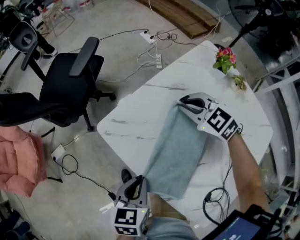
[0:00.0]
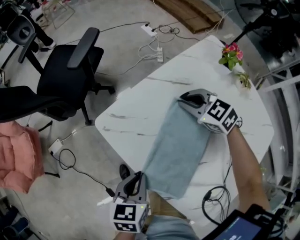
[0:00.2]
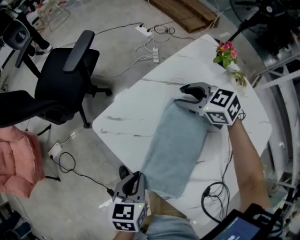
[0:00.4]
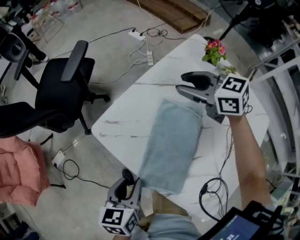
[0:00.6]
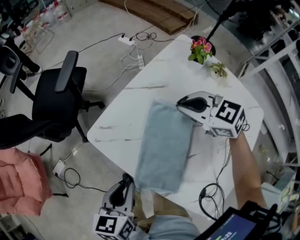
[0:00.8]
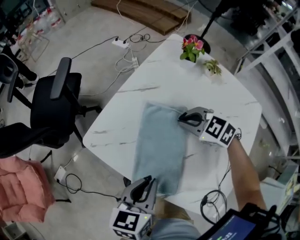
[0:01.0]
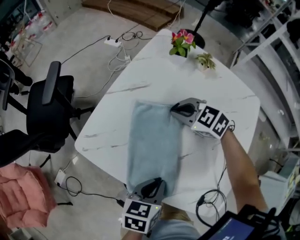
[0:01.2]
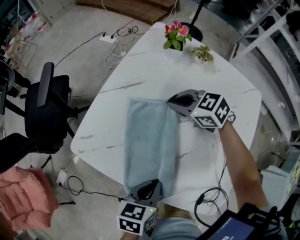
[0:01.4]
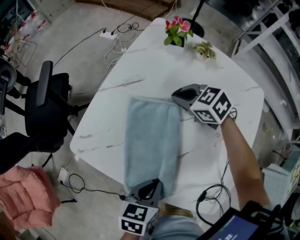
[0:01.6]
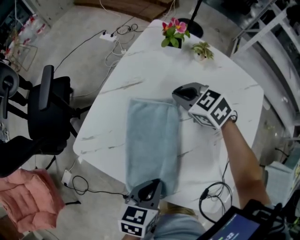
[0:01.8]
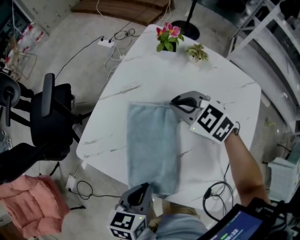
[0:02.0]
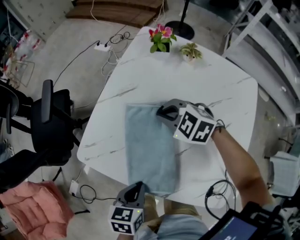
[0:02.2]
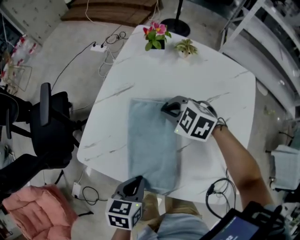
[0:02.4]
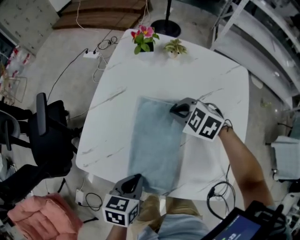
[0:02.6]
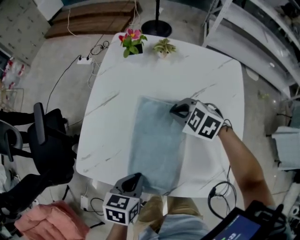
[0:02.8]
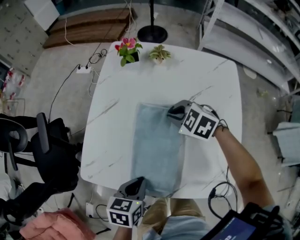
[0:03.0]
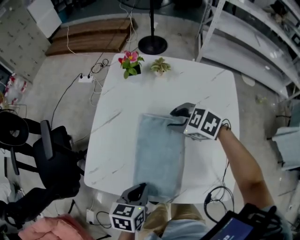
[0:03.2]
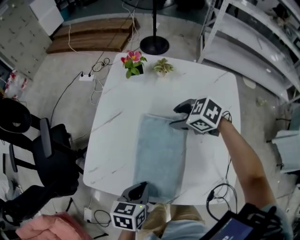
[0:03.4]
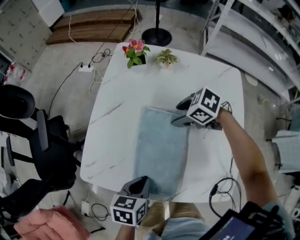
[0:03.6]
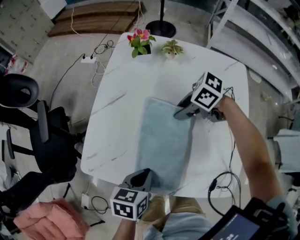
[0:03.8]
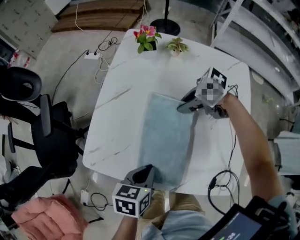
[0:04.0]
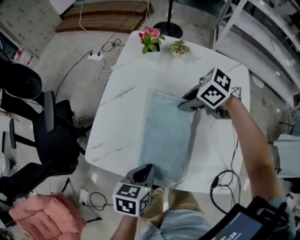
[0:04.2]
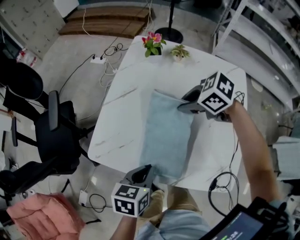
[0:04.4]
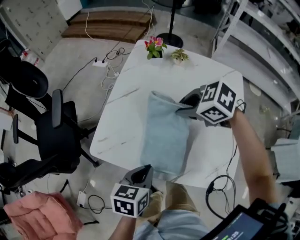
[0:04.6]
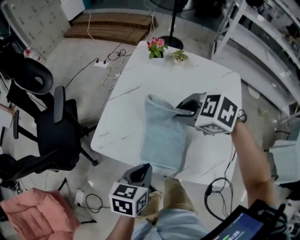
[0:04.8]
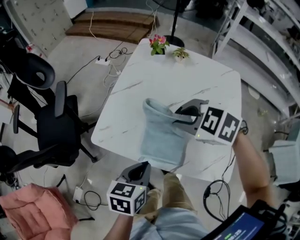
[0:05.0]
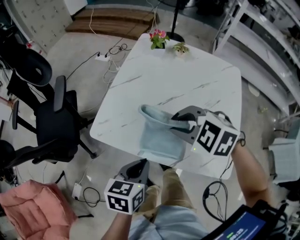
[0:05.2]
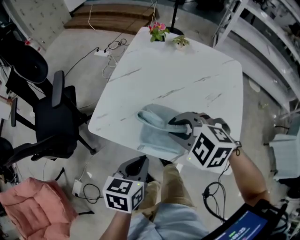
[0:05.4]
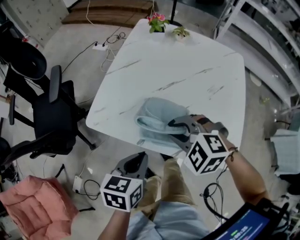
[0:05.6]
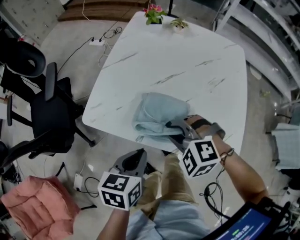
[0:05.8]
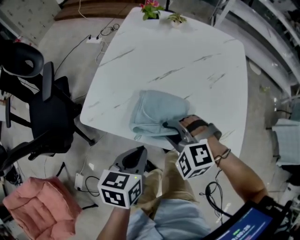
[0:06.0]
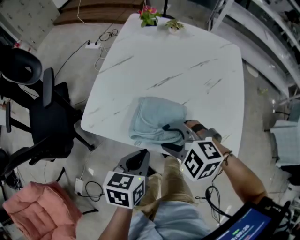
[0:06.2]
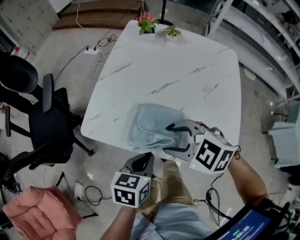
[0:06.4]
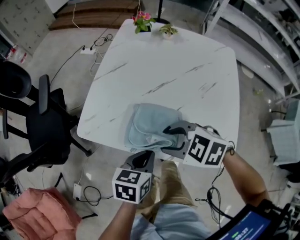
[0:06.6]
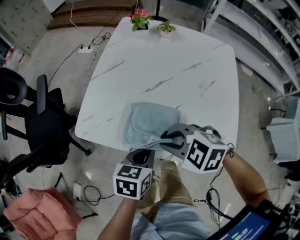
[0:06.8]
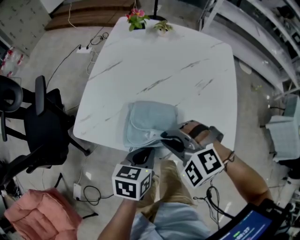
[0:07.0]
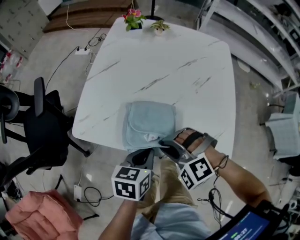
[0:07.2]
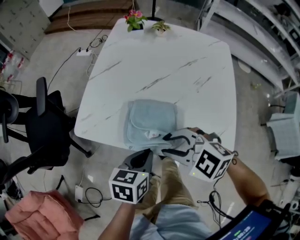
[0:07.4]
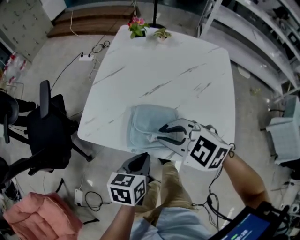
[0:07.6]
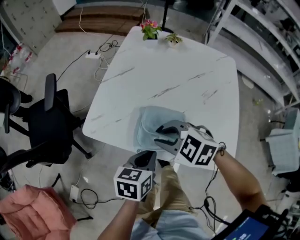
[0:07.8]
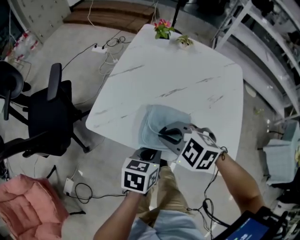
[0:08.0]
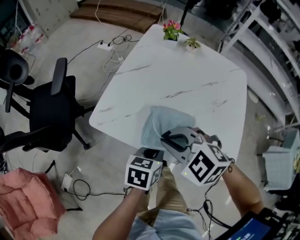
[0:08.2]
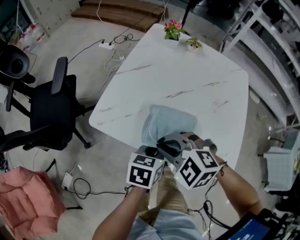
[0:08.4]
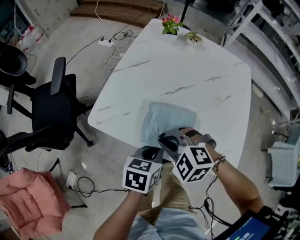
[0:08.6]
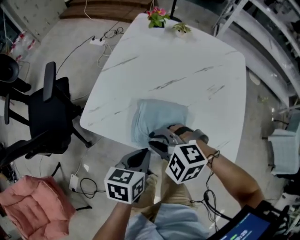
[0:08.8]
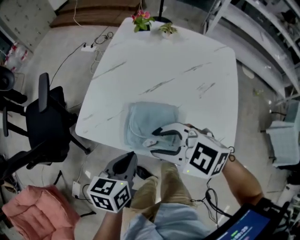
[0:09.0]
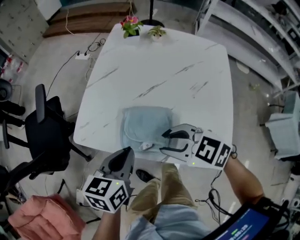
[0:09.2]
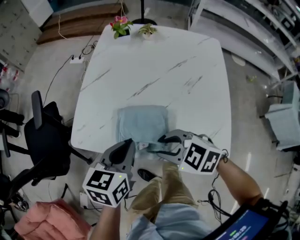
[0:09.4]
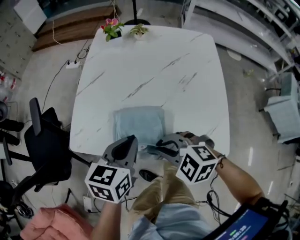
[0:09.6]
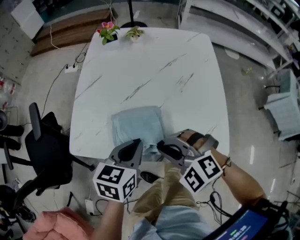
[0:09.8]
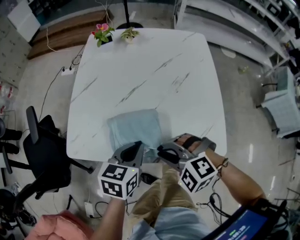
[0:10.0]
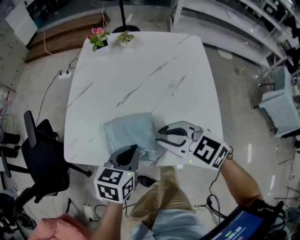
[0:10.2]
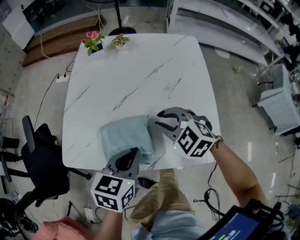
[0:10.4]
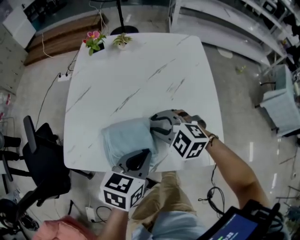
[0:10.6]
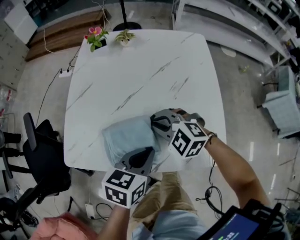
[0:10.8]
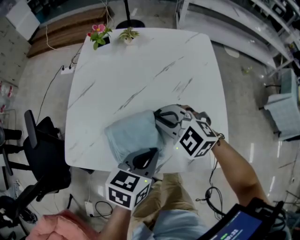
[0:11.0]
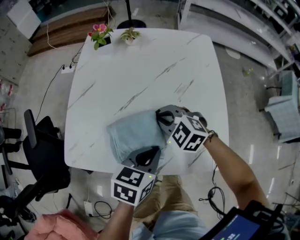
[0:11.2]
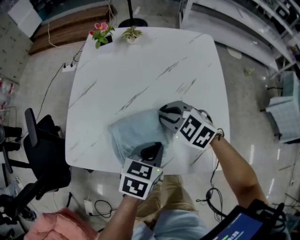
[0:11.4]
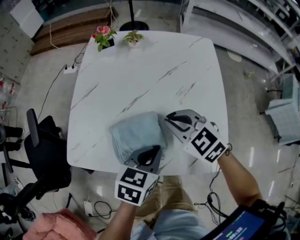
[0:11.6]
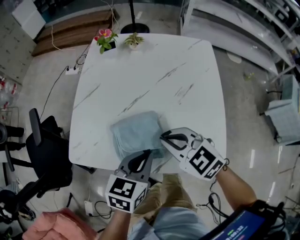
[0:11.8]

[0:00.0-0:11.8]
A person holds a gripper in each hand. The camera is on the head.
0:00.0 to 0:01.4: The right gripper moves up and down over approximately 10 cm, changing direction 2 times, rotates some 30 degrees, and opens and closes again. The left gripper changes place by some 10 cm, turns by approximately 30 degrees, and opens and closes again.
0:01.4 to 0:03.0: The left gripper moves to the left, roughly 5 cm. Meanwhile the right gripper goes some 10 cm to the right and backward, and changes its angle by about 20 degrees.
0:03.0 to 0:04.4: The right gripper heads upward, covering about 5 cm, turns by some 20 degrees, and opens, then closes again.
0:04.4 to 0:06.0: The left gripper changes place by about 5 cm, while the right gripper ends up roughly 25 cm from where it was, and twists some 40 degrees counterclockwise, seen from behind.
0:06.0 to 0:07.4: The left gripper changes place by roughly 5 cm; the right gripper goes up and down, some 5 cm each way, reversing 2 times, turns by approximately 30 degrees, and opens, then closes once more.
0:07.4 to 0:08.8: The right gripper travels to the left by roughly 5 cm, and closes up.
0:08.8 to 0:10.4: The left gripper changes place by approximately 10 cm, and rotates about 30 degrees. Meanwhile the right gripper moves up and down over roughly 10 cm, changing direction 2 times, rotates approximately 30 degrees, and opens, then closes again.
0:10.4 to 0:11.8: The right gripper moves some 5 cm.

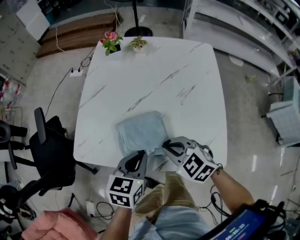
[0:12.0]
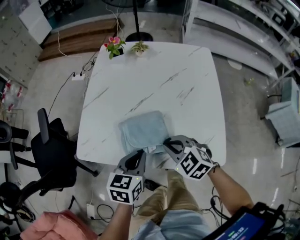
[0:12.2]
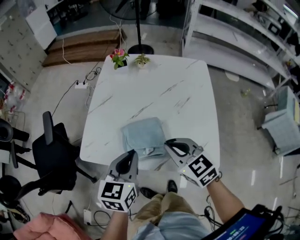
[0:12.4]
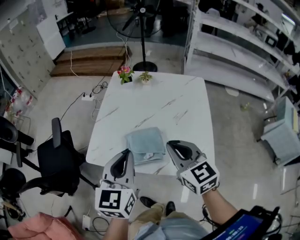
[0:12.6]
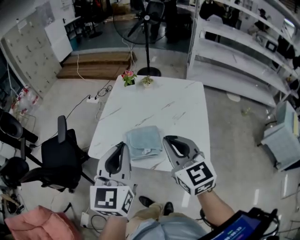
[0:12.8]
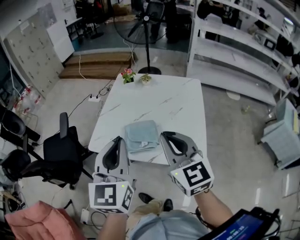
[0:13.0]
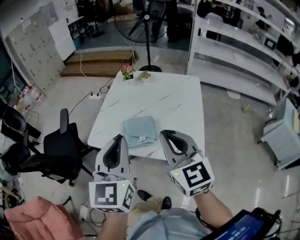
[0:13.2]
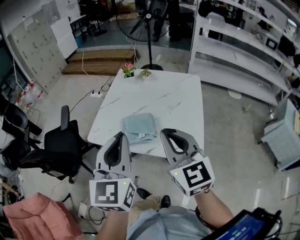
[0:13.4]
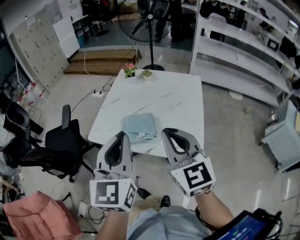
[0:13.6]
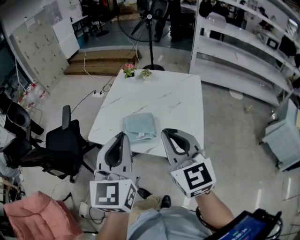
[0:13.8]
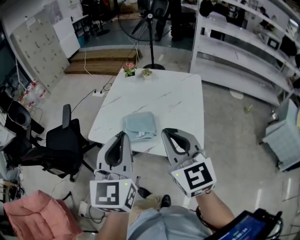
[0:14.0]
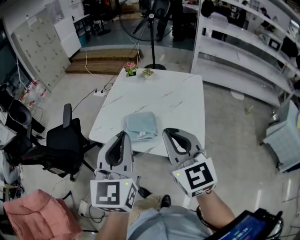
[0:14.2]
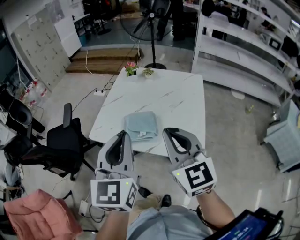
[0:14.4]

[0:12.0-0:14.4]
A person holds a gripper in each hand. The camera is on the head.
0:12.0 to 0:13.2: The two grippers go about 30 cm upward. The left gripper points its fingers roughly 30 degrees further upward; the right gripper points its fingers roughly 40 degrees further upward.
0:13.2 to 0:14.4: There are only small adjustments of the grippers.

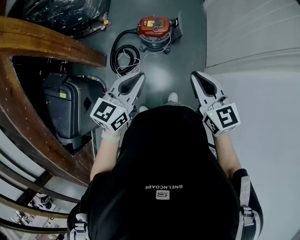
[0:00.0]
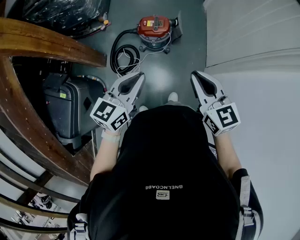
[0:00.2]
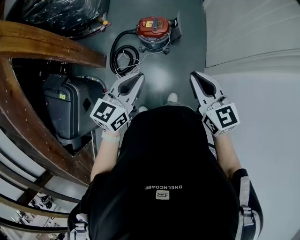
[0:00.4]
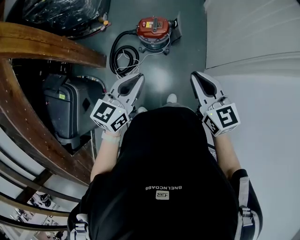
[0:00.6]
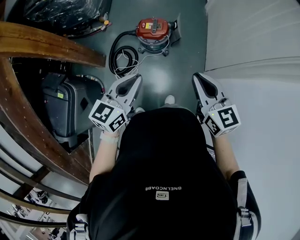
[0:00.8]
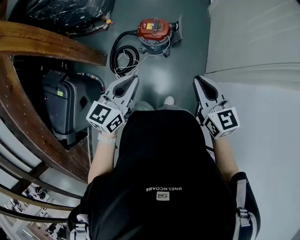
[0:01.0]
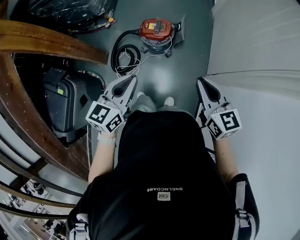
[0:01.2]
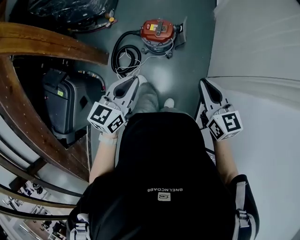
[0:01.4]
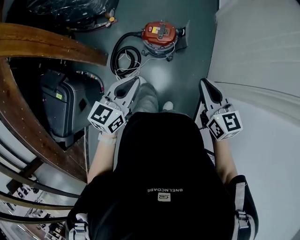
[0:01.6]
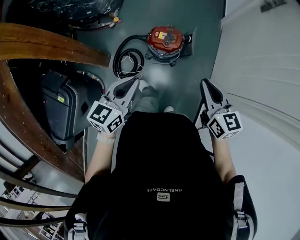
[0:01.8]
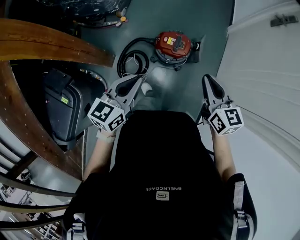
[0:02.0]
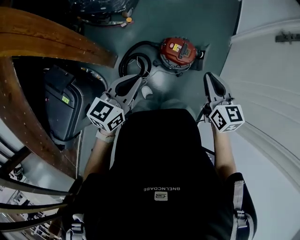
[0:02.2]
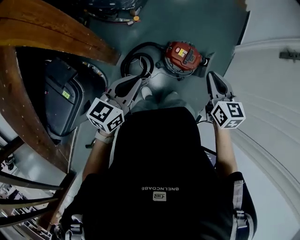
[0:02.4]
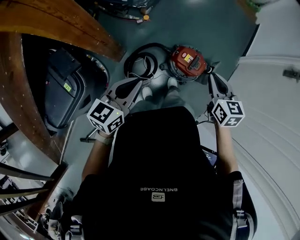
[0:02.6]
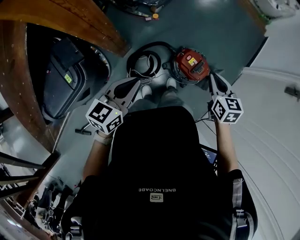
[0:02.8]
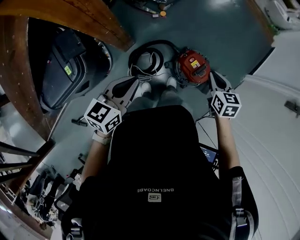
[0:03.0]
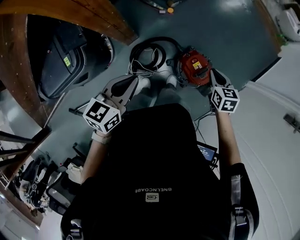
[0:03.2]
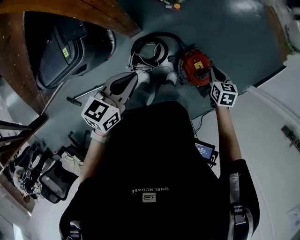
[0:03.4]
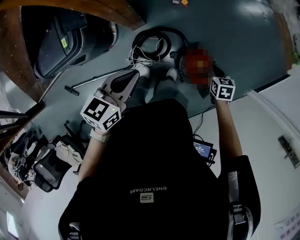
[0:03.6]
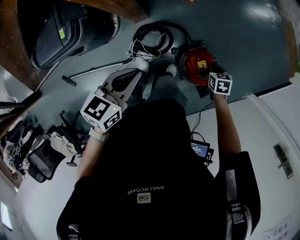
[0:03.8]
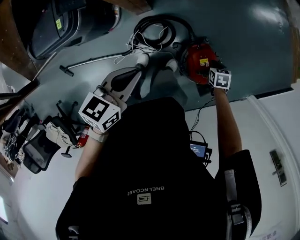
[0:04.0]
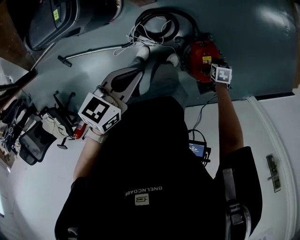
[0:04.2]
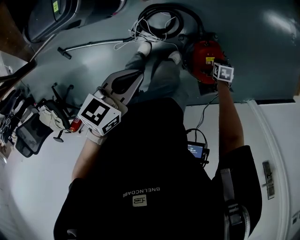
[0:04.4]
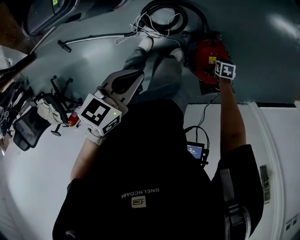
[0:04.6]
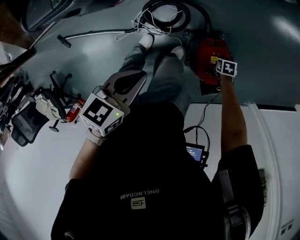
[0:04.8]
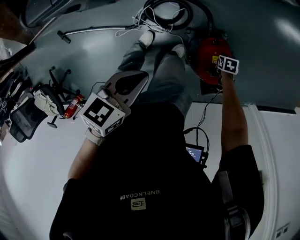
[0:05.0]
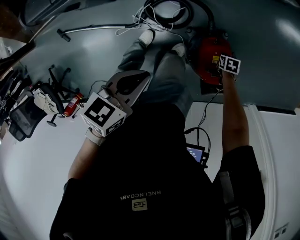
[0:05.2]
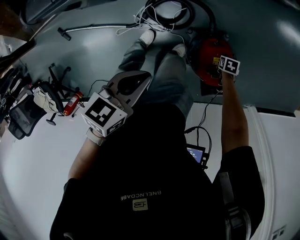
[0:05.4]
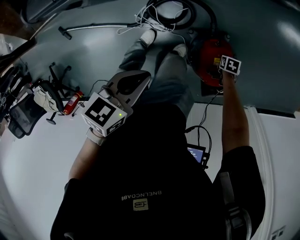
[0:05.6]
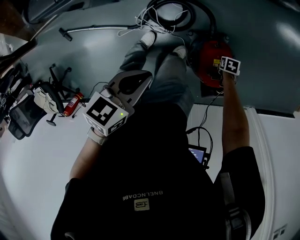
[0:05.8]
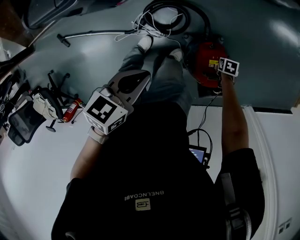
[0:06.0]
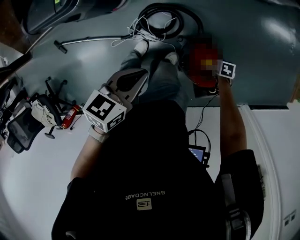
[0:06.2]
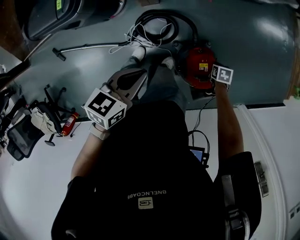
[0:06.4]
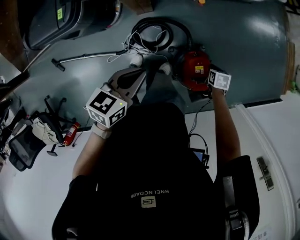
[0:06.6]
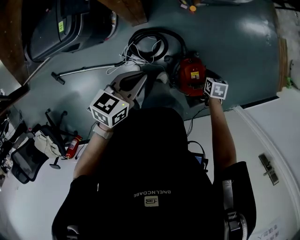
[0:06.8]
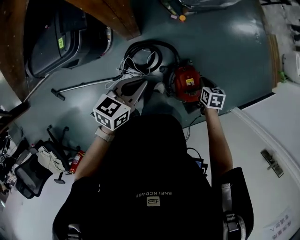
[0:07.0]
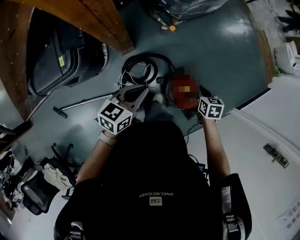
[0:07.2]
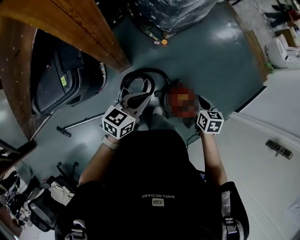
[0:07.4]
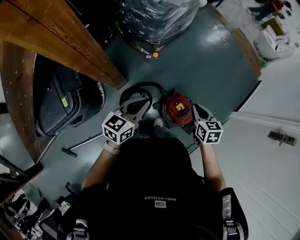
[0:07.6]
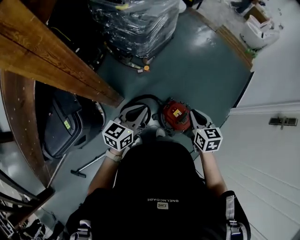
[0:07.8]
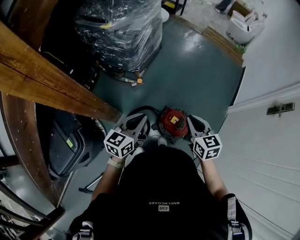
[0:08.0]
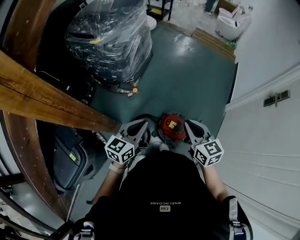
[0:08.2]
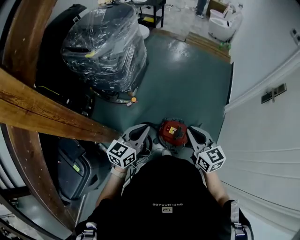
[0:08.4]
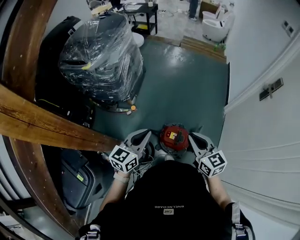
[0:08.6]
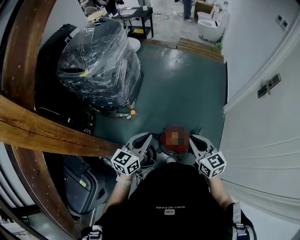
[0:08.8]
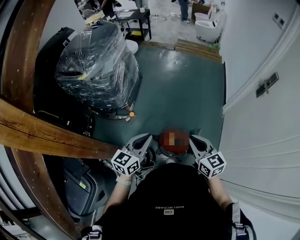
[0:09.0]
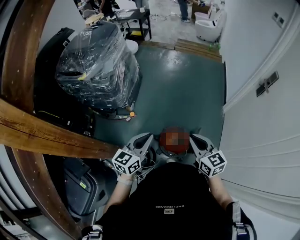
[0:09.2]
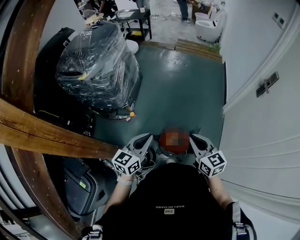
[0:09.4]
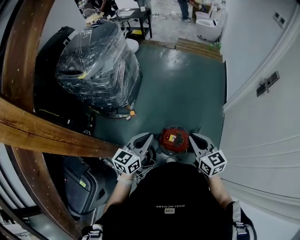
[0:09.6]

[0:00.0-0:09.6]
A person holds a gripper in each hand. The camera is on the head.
0:00.0 to 0:01.6: The left gripper heads forward, covering some 10 cm. Meanwhile the right gripper moves forward and to the right, about 15 cm.
0:01.6 to 0:03.2: The right gripper shifts by roughly 50 cm, and changes its angle by approximately 40 degrees. The left gripper changes place by some 30 cm, and rotates roughly 40 degrees.
0:03.2 to 0:04.8: The left gripper goes approximately 20 cm downward, and swivels roughly 30 degrees. The right gripper is displaced downward by roughly 50 cm, and tips its fingers downward by approximately 30 degrees.
0:04.8 to 0:06.4: The left gripper shifts by some 5 cm. Meanwhile the right gripper goes approximately 10 cm upward.
0:06.4 to 0:08.0: The right gripper goes approximately 50 cm upward, and points its fingers some 50 degrees further upward, while the left gripper shifts about 20 cm upward, and swivels approximately 50 degrees.
0:08.0 to 0:09.6: The right gripper moves to the right and upward, approximately 10 cm; the left gripper is displaced to the right by approximately 10 cm.
